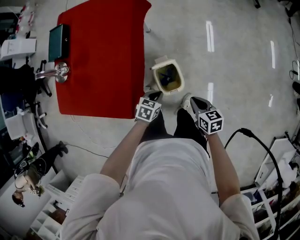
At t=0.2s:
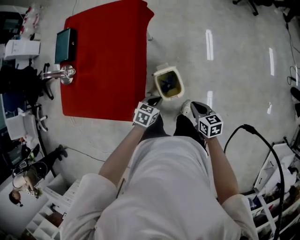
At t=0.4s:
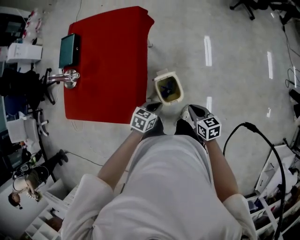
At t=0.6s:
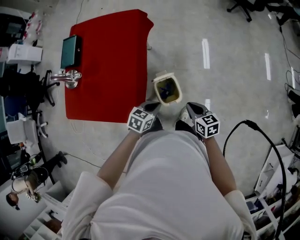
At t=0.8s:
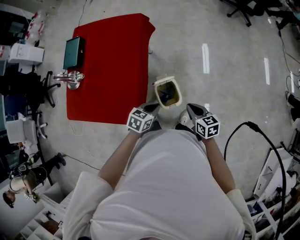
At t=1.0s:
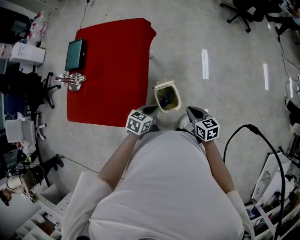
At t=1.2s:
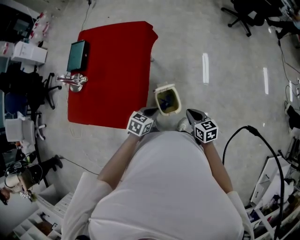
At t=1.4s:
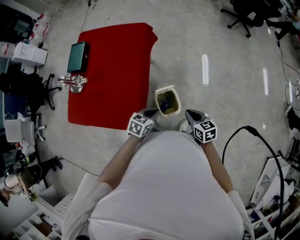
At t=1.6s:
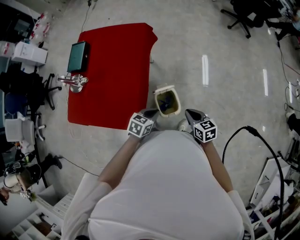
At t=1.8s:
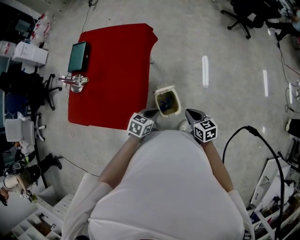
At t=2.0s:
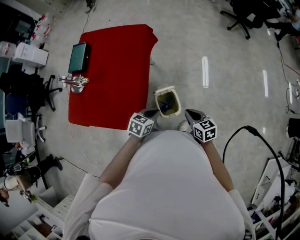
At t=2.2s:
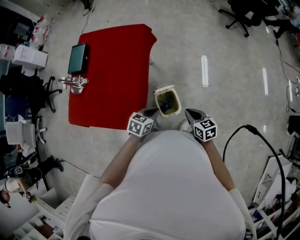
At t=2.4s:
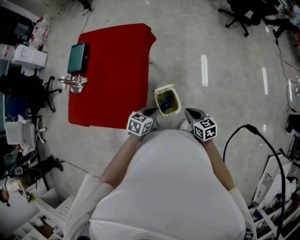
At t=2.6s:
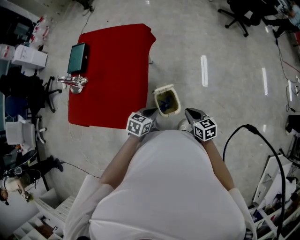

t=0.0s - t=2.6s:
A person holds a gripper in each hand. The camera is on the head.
t=0.0s - t=1.2s: The grippers both shift upward by about 15 cm.
t=1.2s - t=2.6s: Both grippers stay put.

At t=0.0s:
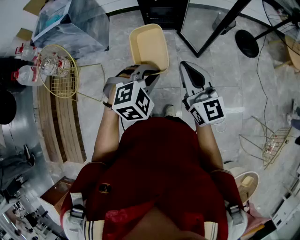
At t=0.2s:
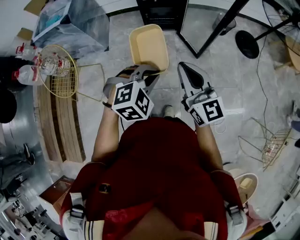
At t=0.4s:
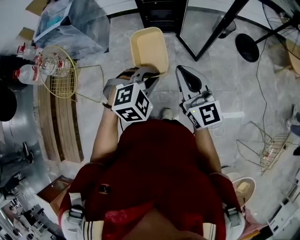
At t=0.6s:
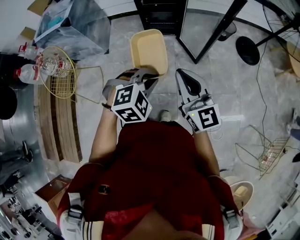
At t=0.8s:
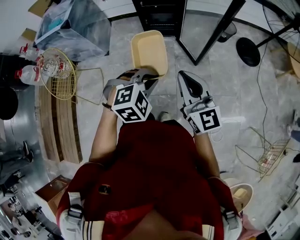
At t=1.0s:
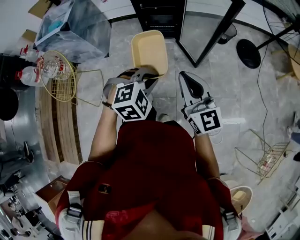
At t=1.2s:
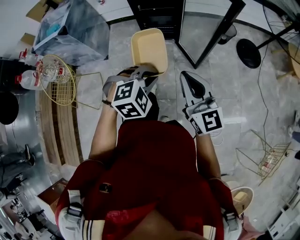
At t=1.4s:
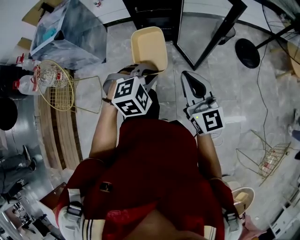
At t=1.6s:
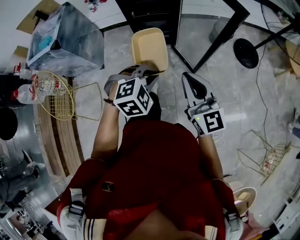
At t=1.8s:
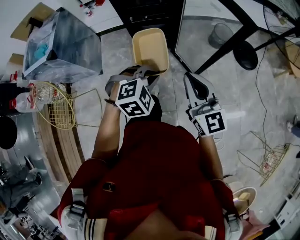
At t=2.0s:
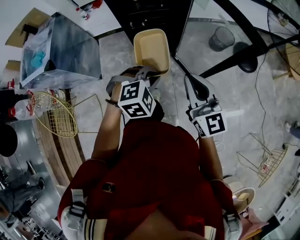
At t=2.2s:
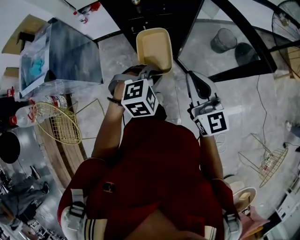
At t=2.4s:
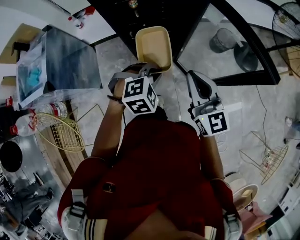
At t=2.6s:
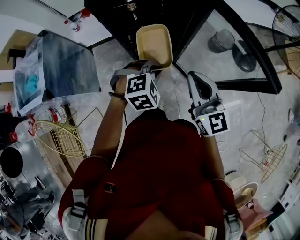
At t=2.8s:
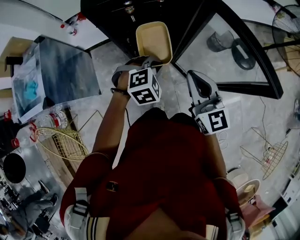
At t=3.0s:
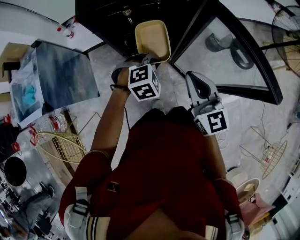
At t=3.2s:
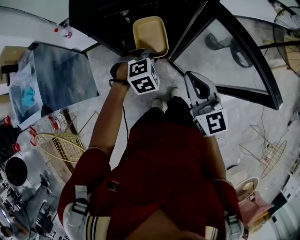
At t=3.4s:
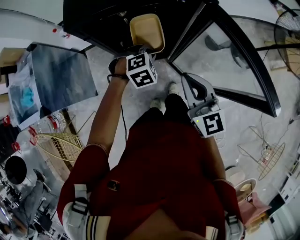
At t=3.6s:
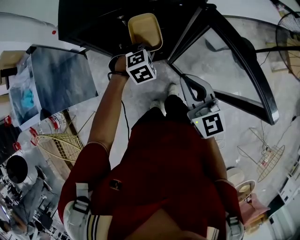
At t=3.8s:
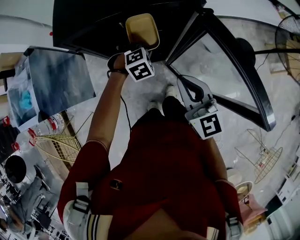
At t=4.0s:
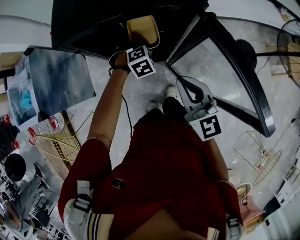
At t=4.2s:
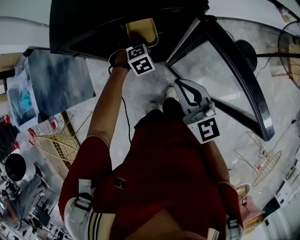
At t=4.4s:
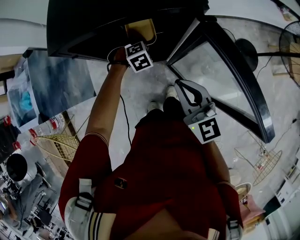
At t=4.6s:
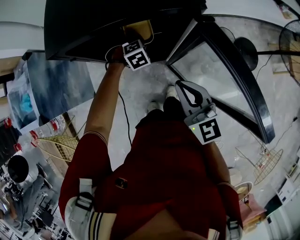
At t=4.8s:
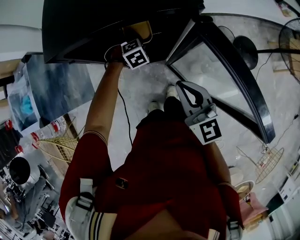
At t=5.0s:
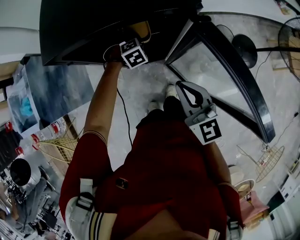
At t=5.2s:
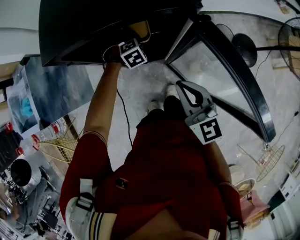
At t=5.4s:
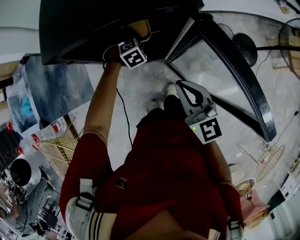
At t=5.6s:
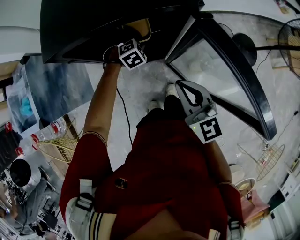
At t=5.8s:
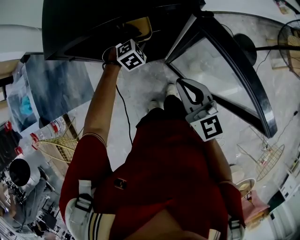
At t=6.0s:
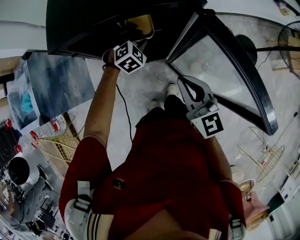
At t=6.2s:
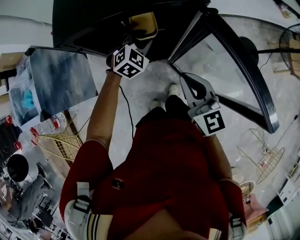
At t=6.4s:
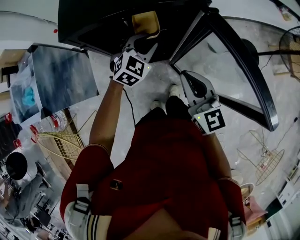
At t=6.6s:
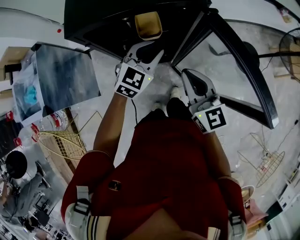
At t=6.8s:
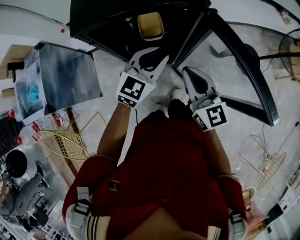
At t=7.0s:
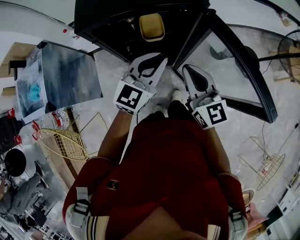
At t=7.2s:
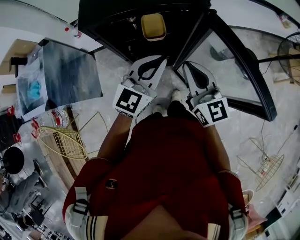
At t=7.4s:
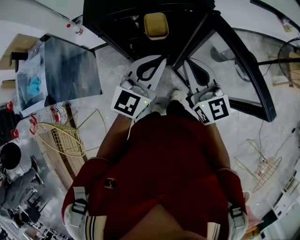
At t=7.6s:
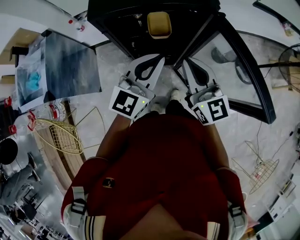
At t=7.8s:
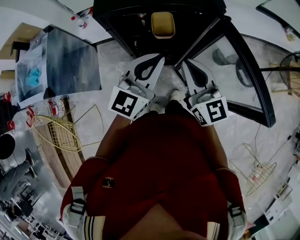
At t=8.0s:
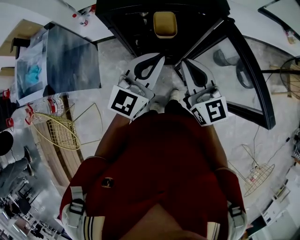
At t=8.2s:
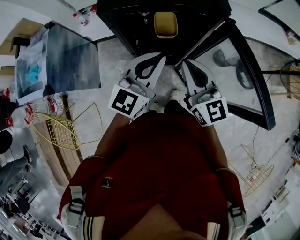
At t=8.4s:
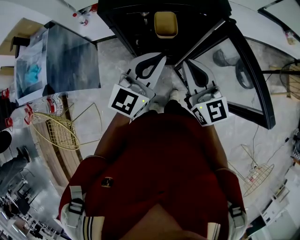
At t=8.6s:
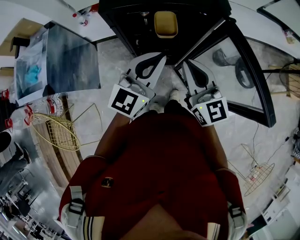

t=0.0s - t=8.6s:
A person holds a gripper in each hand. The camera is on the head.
t=0.0s - t=1.4s: The grippers both shift forward and to the right by about 15 cm.
t=1.4s - t=2.8s: The pair of grippers is taken forward, some 40 cm.
t=2.8s - t=4.4s: The right gripper goes approximately 10 cm forward; the left gripper shifts about 25 cm forward and downward.
t=4.4s - t=5.8s: The left gripper opens its fingers.
t=5.8s - t=7.2s: The right gripper goes about 5 cm upward; the left gripper is displaced upward and backward by some 30 cm, points its fingers some 50 degrees further upward, and closes up.
t=7.2s - t=8.6s: Both grippers travel together to the left, approximately 5 cm.

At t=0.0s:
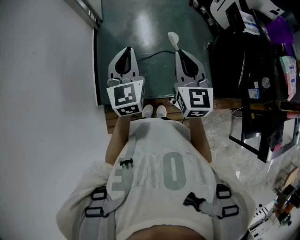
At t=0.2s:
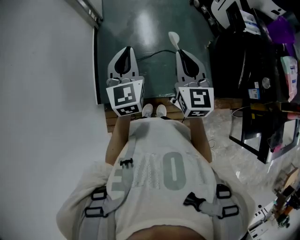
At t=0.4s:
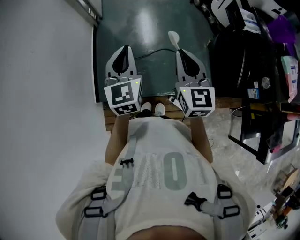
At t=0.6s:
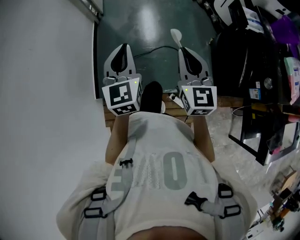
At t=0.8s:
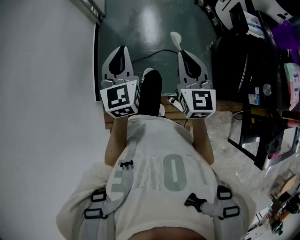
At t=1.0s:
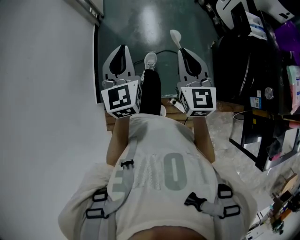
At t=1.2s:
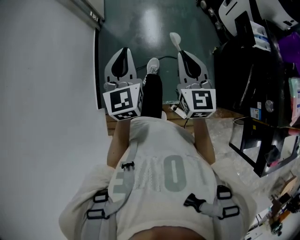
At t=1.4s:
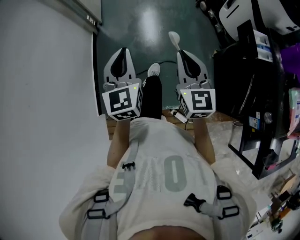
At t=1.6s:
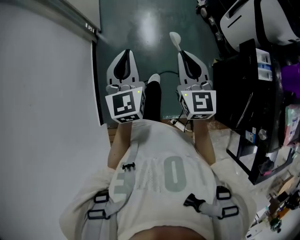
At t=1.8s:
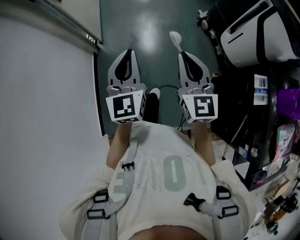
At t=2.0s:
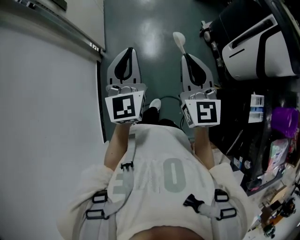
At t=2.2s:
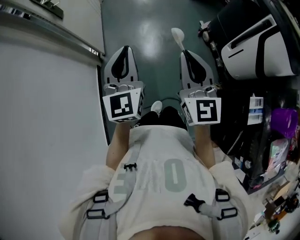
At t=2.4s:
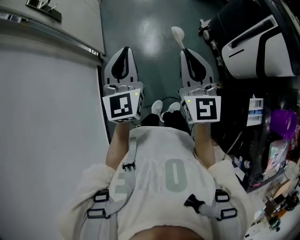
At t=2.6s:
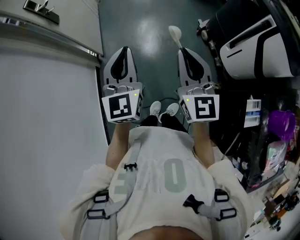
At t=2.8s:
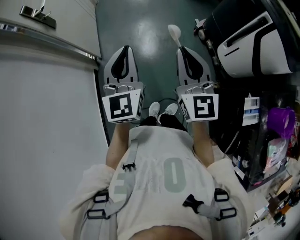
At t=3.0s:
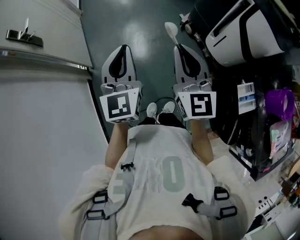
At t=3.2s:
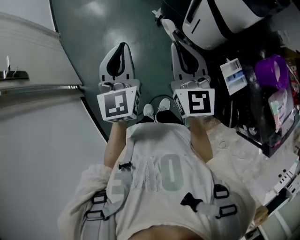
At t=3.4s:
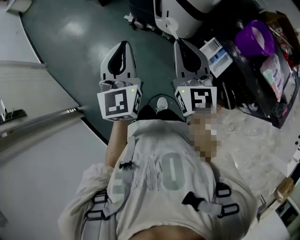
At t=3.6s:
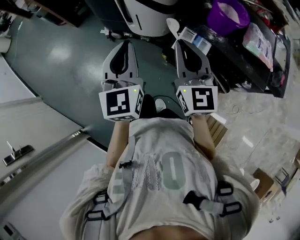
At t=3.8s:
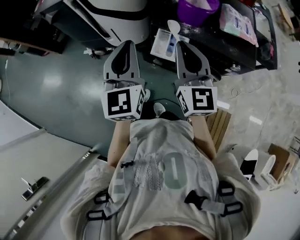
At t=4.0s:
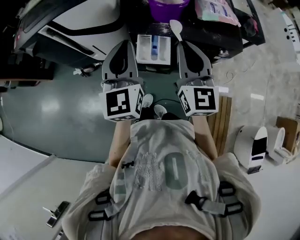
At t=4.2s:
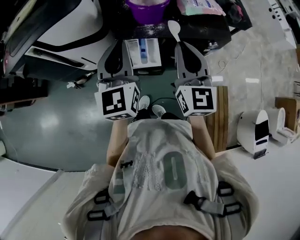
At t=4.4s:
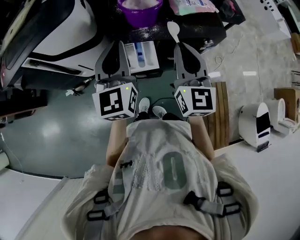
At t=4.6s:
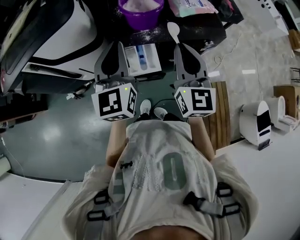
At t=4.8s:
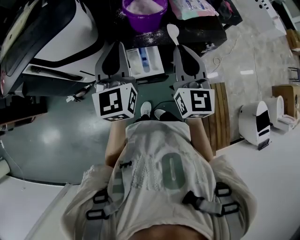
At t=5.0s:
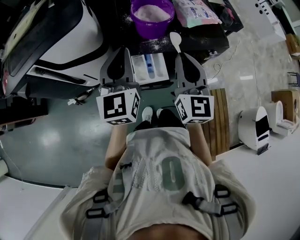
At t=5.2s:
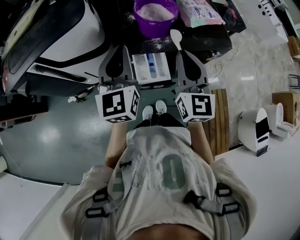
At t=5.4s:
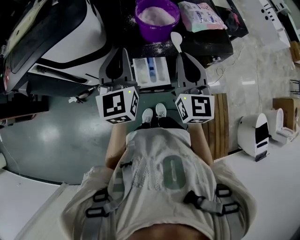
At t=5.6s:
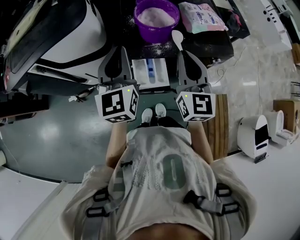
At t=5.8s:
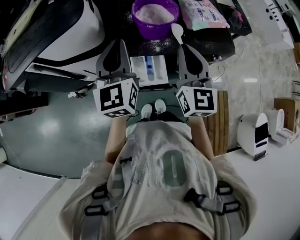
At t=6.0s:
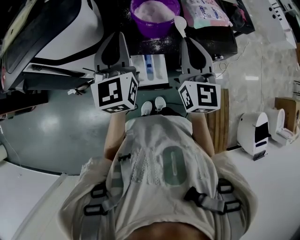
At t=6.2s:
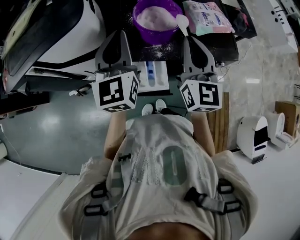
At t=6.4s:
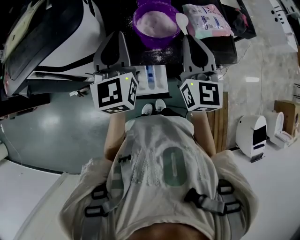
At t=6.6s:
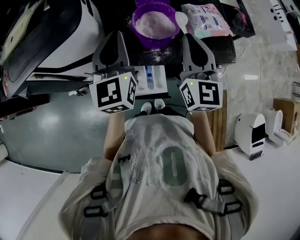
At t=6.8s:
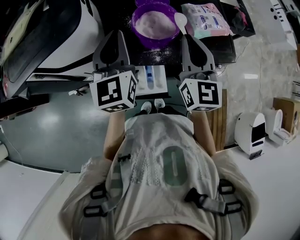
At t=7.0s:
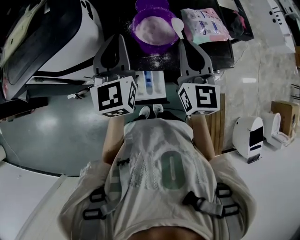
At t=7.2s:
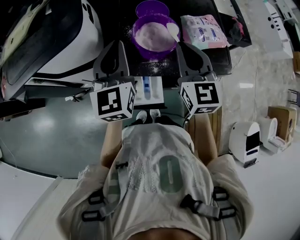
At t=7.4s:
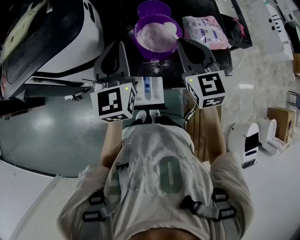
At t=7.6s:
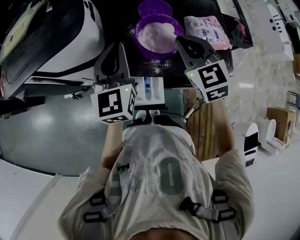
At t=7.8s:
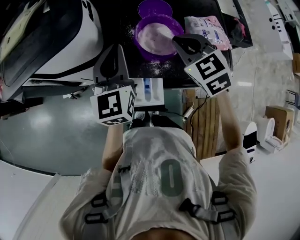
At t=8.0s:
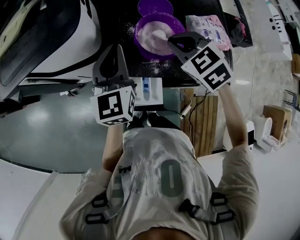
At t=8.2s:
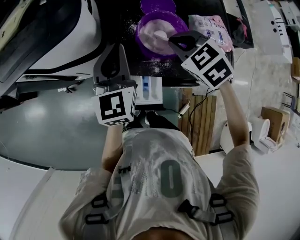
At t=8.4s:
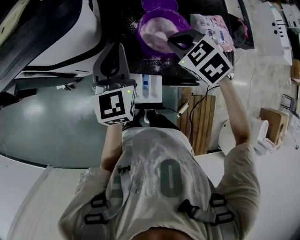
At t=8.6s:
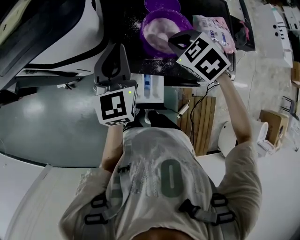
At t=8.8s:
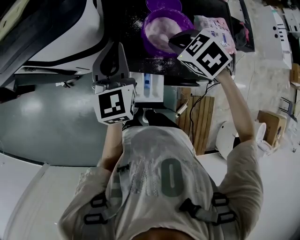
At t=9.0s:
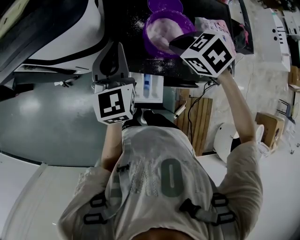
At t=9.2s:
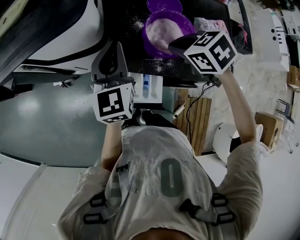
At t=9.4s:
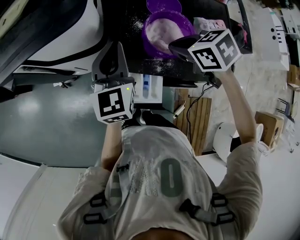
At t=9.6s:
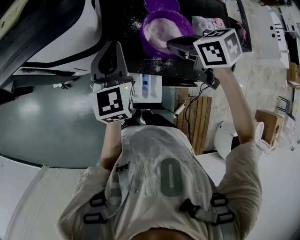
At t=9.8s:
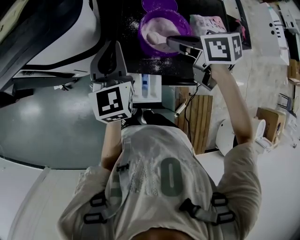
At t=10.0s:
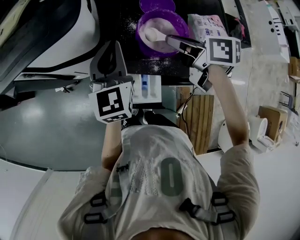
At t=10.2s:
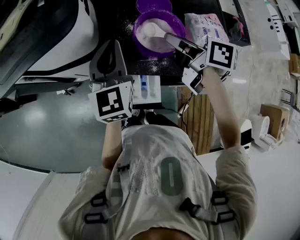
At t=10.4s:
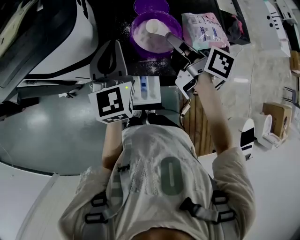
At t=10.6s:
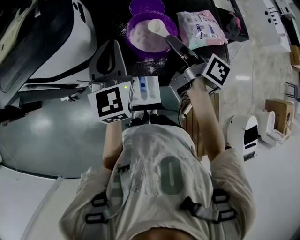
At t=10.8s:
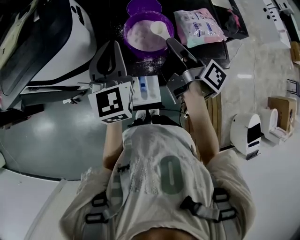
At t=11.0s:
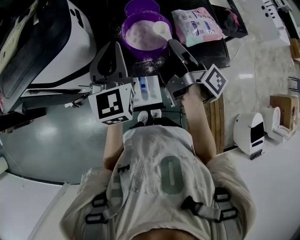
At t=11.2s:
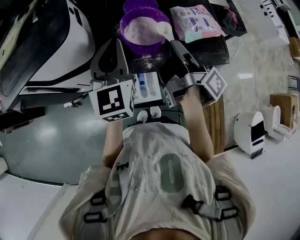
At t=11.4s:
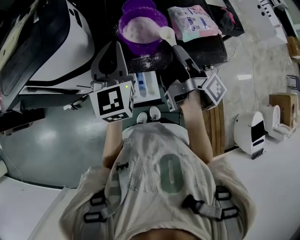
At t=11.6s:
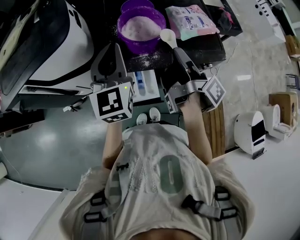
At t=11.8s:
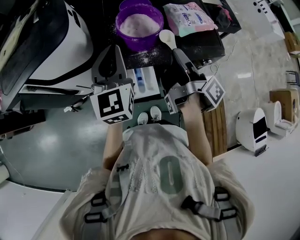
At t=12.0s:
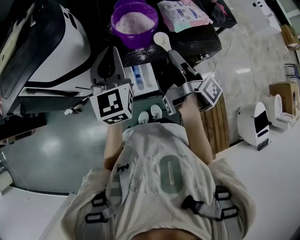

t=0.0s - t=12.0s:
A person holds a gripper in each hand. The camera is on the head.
t=0.0s - t=1.6s: Both grippers move forward, some 25 cm.
t=1.6s - t=3.0s: The grippers both shift forward and upward by about 30 cm.
t=3.0s - t=4.4s: The two grippers travel together, about 50 cm. The left gripper rotates roughly 80 degrees; the right gripper swivels about 90 degrees.
t=4.4s - t=6.0s: Both grippers move forward, approximately 10 cm.
t=6.0s - t=7.6s: The left gripper heads forward, covering approximately 5 cm. Meanwhile the right gripper is displaced forward by roughly 10 cm, and swivels about 40 degrees.
t=7.6s - t=9.0s: The left gripper moves roughly 5 cm. Meanwhile the right gripper is displaced downward by approximately 10 cm, and tips its fingers downward by some 40 degrees.
t=9.0s - t=10.4s: The right gripper moves upward, some 5 cm, and tips its fingers upward by roughly 50 degrees.
t=10.4s - t=12.0s: The left gripper shifts roughly 10 cm backward. The right gripper shifts roughly 15 cm backward, and changes its angle by about 50 degrees.
